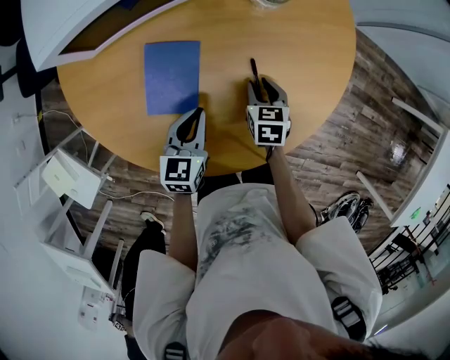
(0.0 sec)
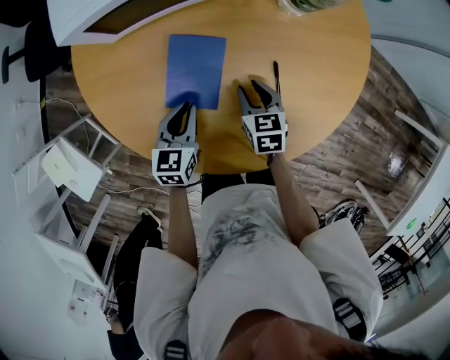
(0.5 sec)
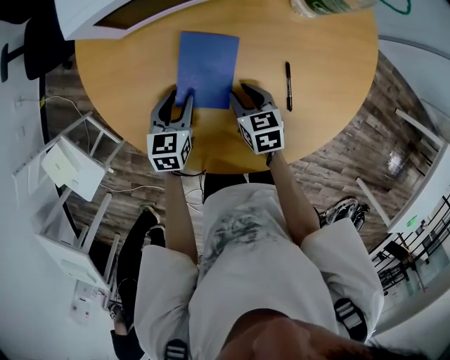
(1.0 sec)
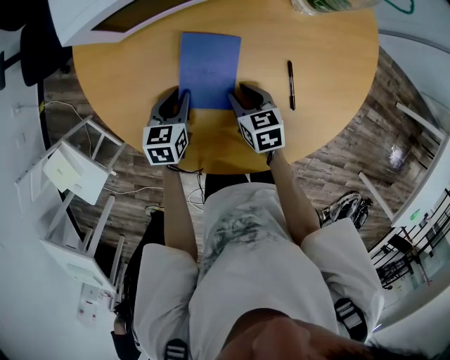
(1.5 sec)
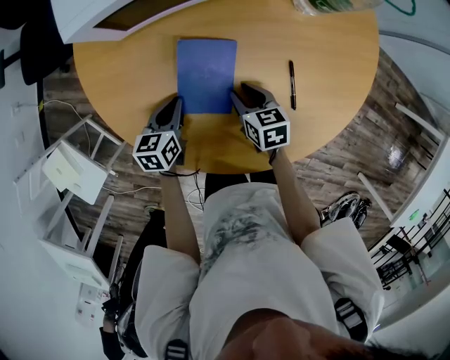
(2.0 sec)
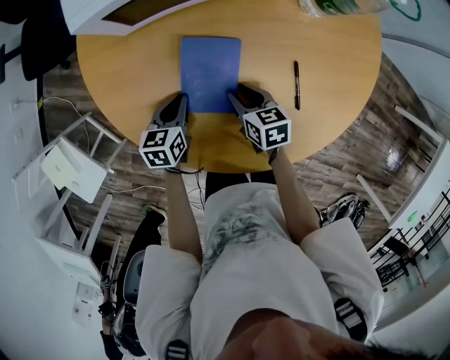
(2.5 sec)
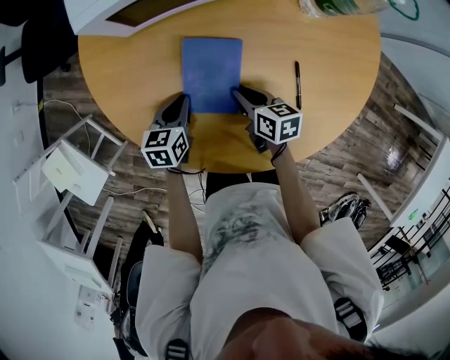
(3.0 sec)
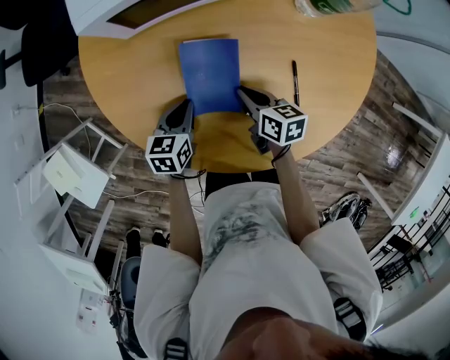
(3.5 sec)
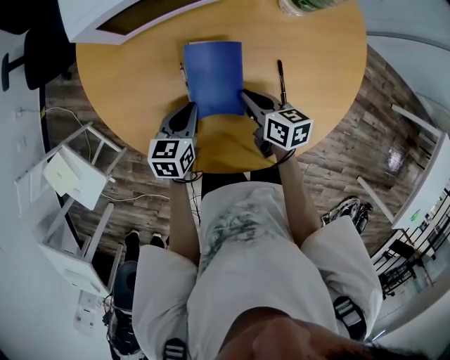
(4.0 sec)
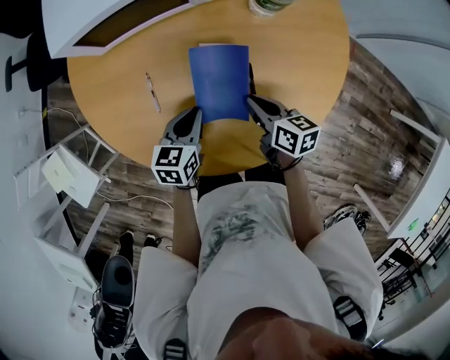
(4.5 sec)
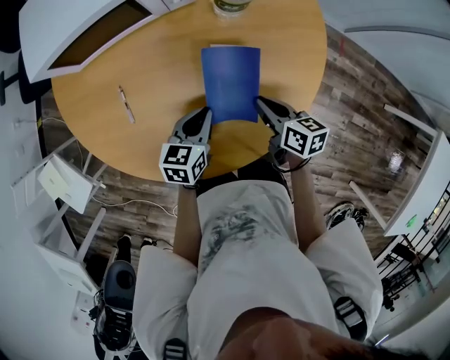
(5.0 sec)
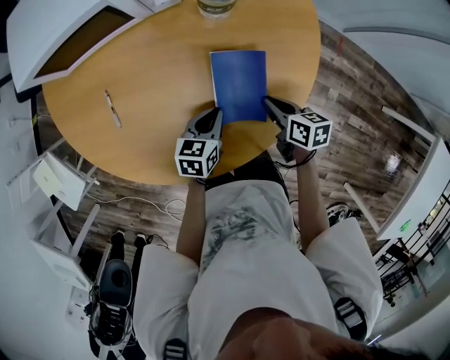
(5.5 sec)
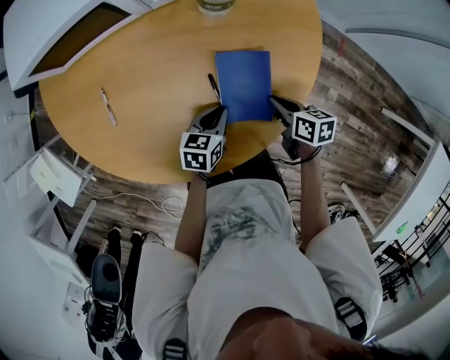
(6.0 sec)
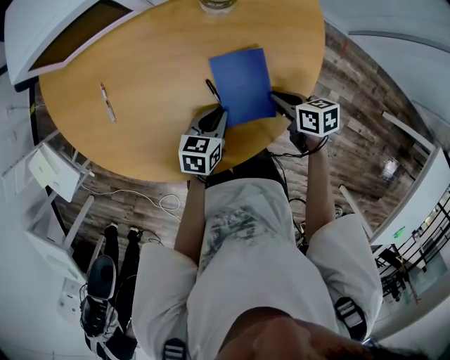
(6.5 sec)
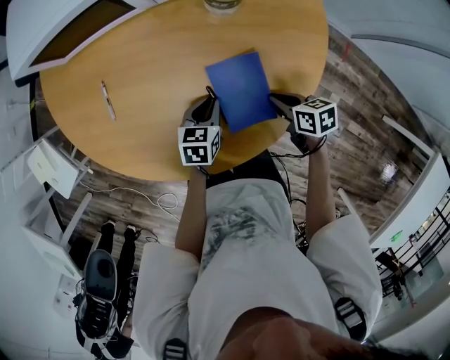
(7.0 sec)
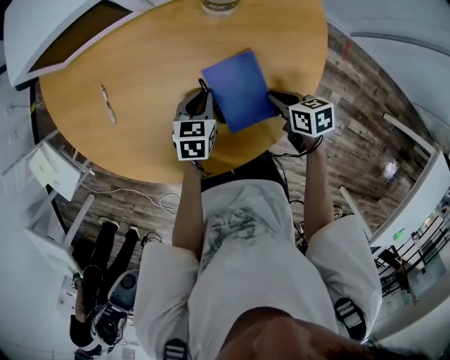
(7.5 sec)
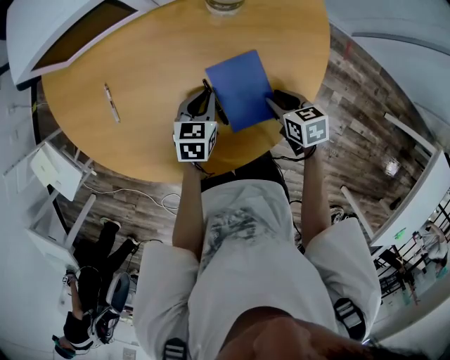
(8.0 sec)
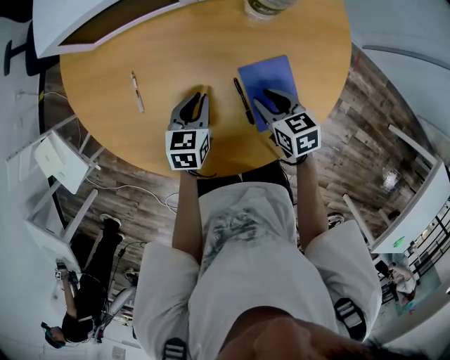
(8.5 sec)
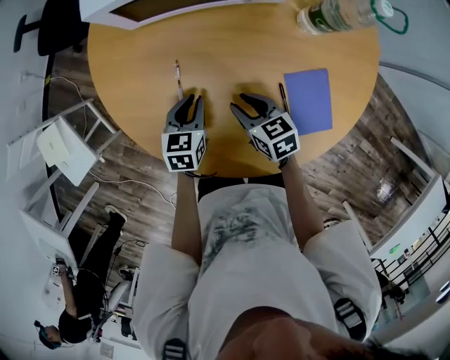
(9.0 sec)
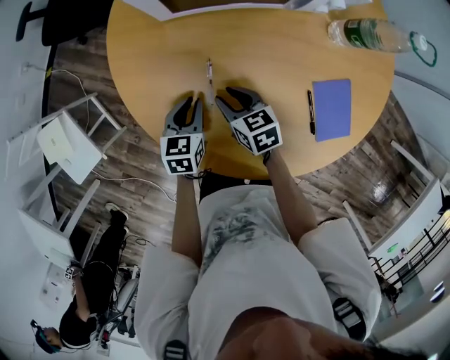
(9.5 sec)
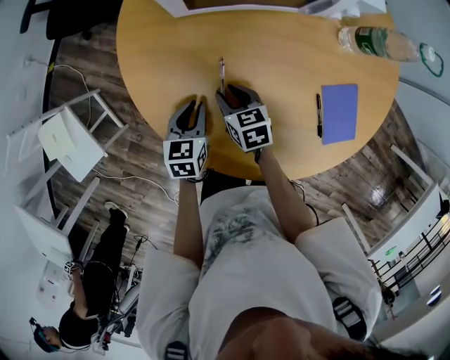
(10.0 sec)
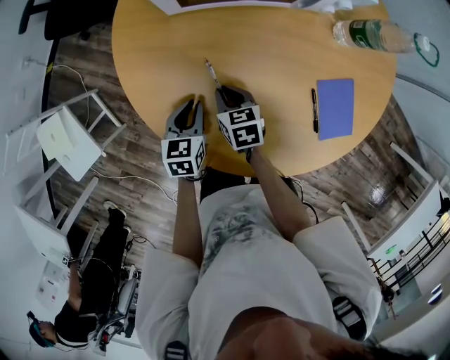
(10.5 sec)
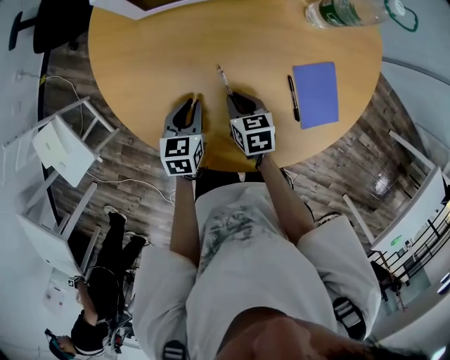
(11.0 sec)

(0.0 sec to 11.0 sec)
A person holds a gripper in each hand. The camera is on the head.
0.0 sec - 2.0 sec: The right gripper goes approximately 15 cm to the left, and changes its angle by roughly 20 degrees, while the left gripper travels to the left and downward by some 20 cm, and opens, then closes again.
2.0 sec - 3.5 sec: The right gripper closes.
3.5 sec - 5.5 sec: The two grippers go about 35 cm to the right.
5.5 sec - 7.5 sec: The left gripper goes roughly 5 cm forward.
7.5 sec - 9.0 sec: Both grippers move to the left, some 30 cm. The right gripper swivels some 20 degrees, and opens up.
9.0 sec - 11.0 sec: The right gripper goes to the left and returns, about 15 cm each way, and closes.

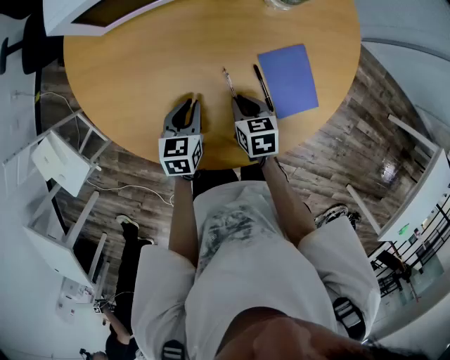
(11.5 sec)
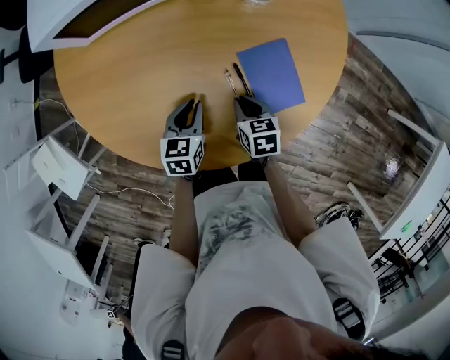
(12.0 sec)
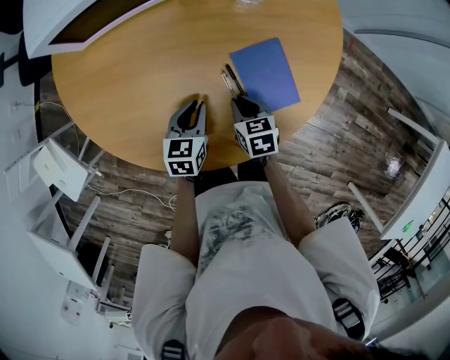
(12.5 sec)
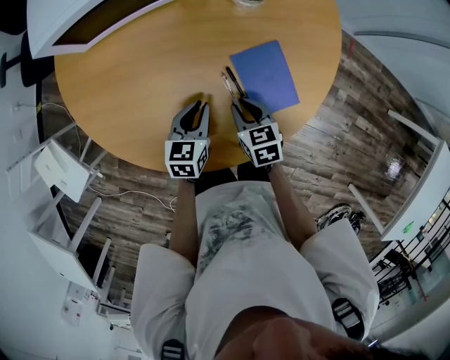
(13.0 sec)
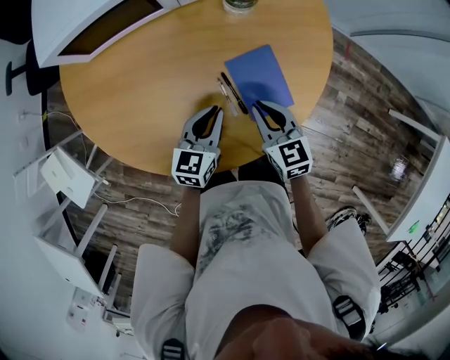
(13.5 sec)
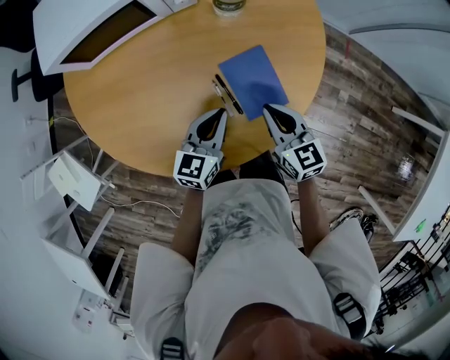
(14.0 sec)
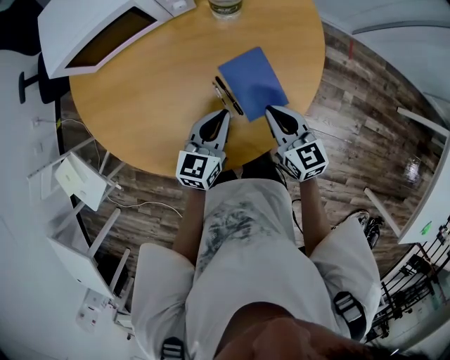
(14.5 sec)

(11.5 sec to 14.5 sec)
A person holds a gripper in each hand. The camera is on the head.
11.5 sec - 13.0 sec: Both grippers travel together to the right, roughly 10 cm.
13.0 sec - 14.5 sec: Both grippers move upward and to the right, approximately 15 cm. The right gripper swivels roughly 20 degrees.

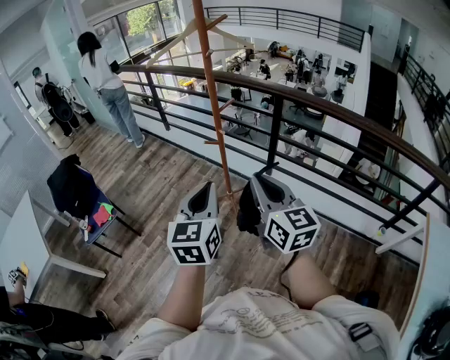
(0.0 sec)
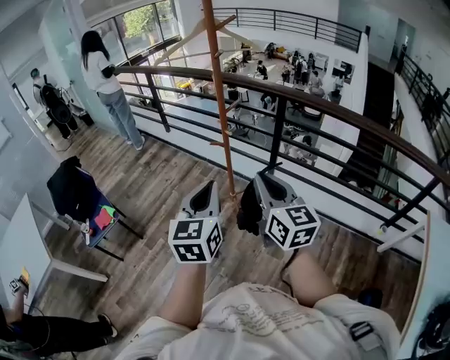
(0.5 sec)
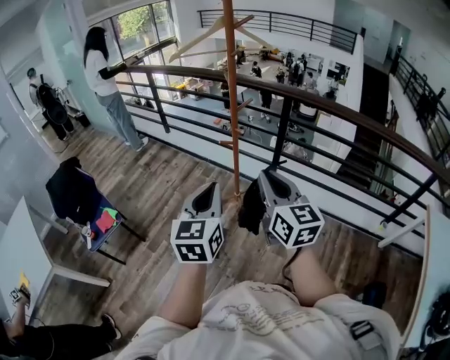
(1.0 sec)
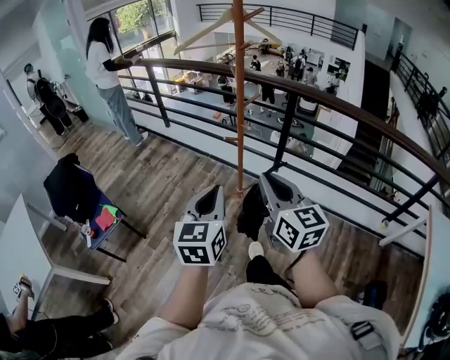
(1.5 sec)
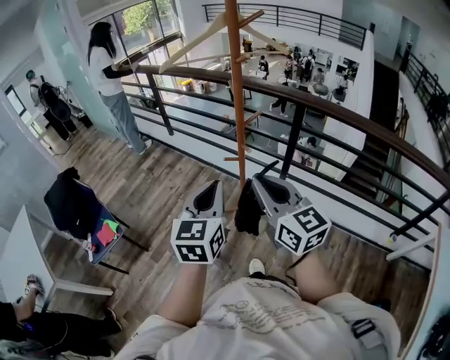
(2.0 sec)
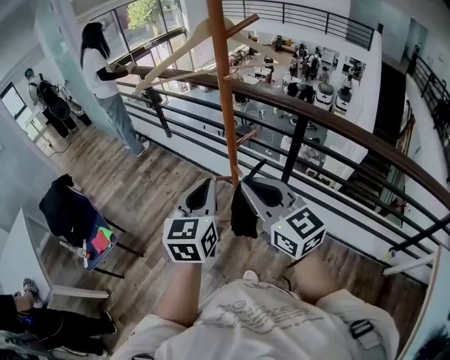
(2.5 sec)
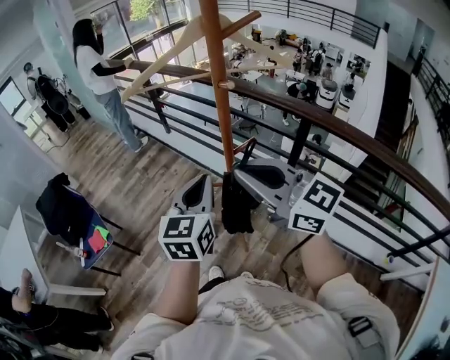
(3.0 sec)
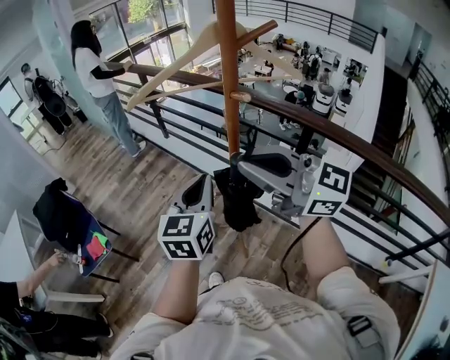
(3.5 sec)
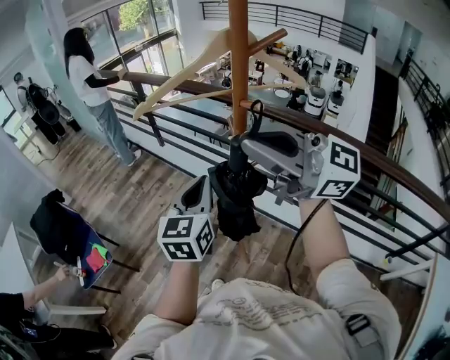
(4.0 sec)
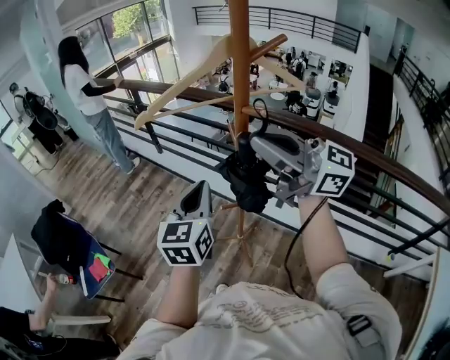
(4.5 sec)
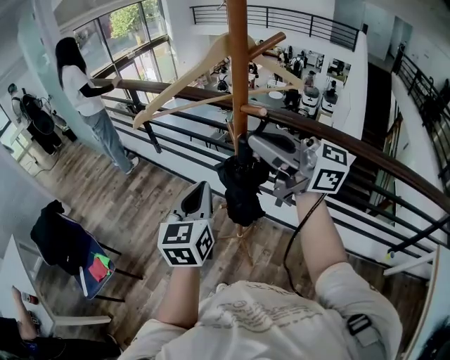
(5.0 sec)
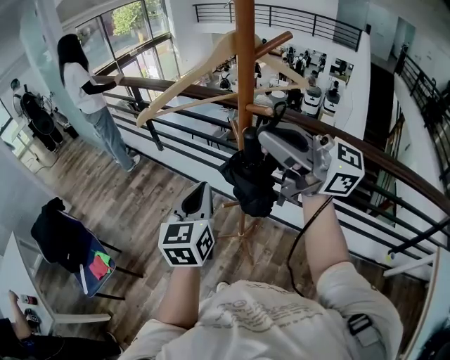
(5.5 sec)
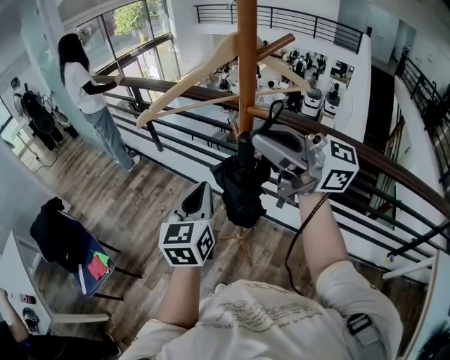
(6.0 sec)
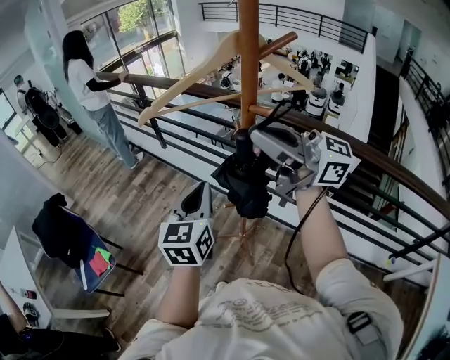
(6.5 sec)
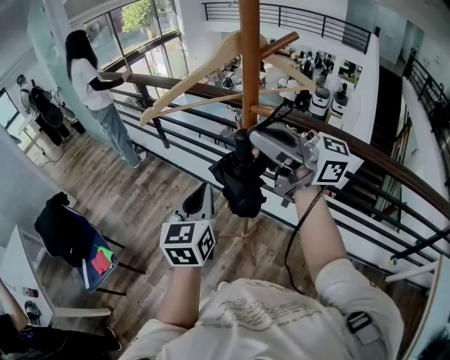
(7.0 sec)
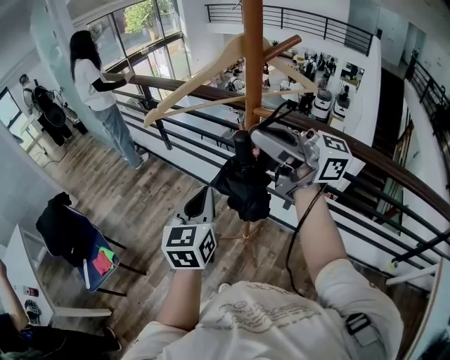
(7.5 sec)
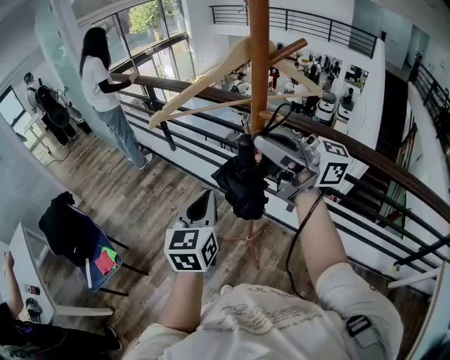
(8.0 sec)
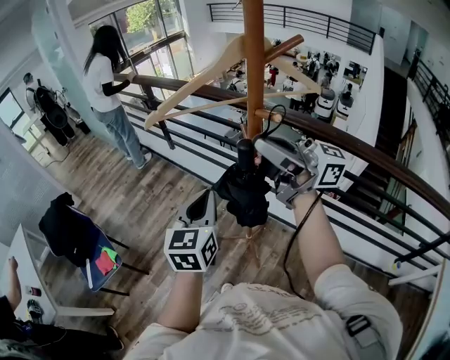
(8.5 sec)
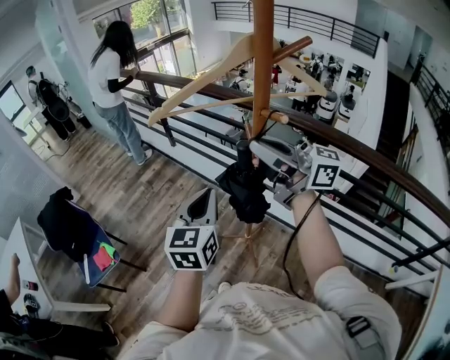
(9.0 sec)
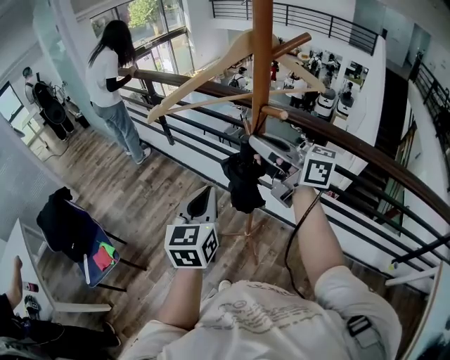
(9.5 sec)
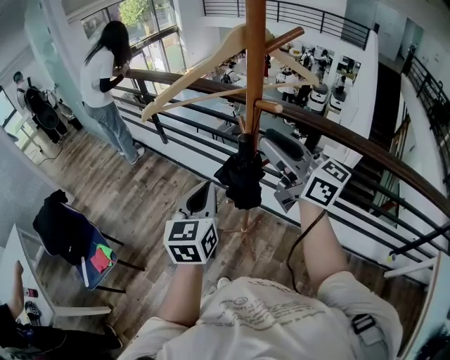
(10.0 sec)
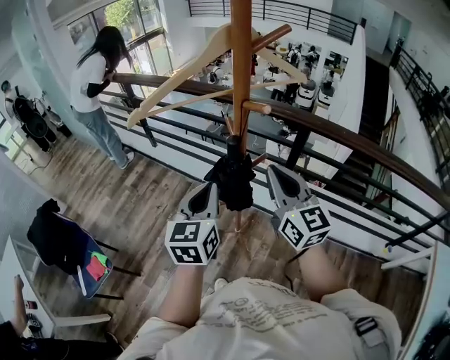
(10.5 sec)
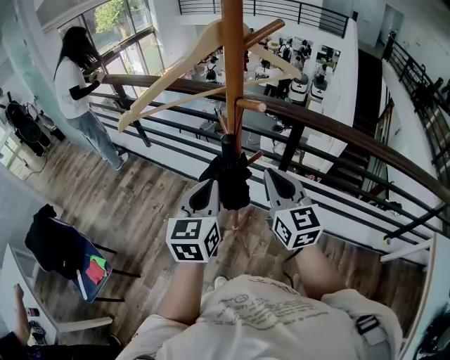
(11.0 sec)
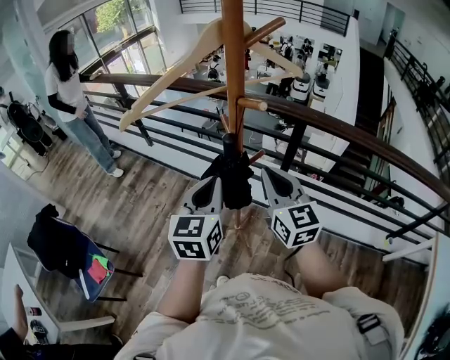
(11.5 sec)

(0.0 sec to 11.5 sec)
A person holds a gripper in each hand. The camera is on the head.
0.0 sec - 2.0 sec: The two grippers go some 20 cm forward and to the left.
2.0 sec - 4.0 sec: The right gripper is displaced forward and upward by about 25 cm, and rotates some 50 degrees, while the left gripper goes roughly 25 cm forward.
6.0 sec - 7.5 sec: There are only small adjustments of the grippers.
7.5 sec - 9.5 sec: The right gripper is displaced downward and forward by approximately 10 cm, and swivels approximately 20 degrees.
9.5 sec - 11.5 sec: The left gripper shifts by approximately 5 cm, while the right gripper heads downward, covering approximately 10 cm, swivels about 60 degrees, and opens and closes again.

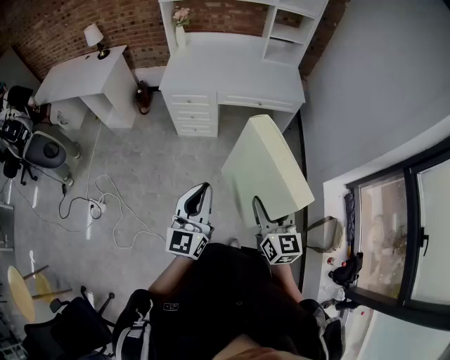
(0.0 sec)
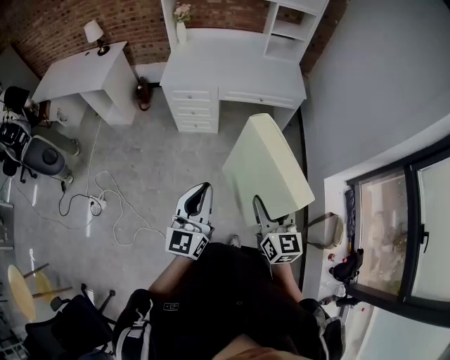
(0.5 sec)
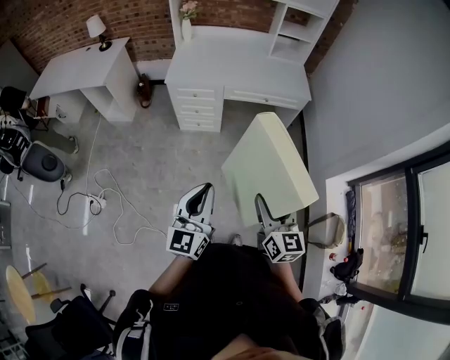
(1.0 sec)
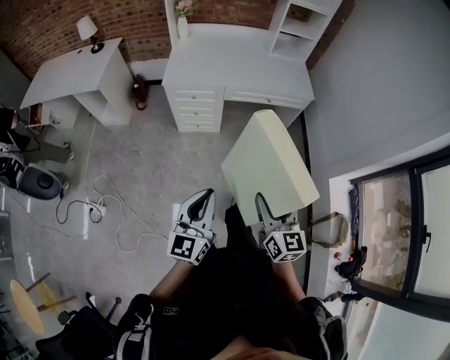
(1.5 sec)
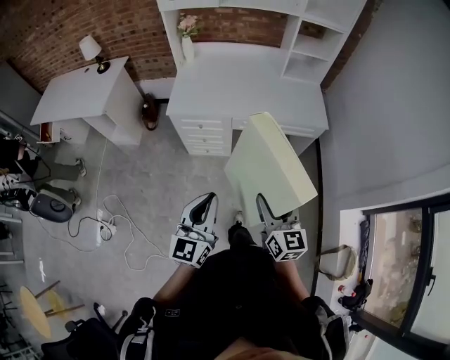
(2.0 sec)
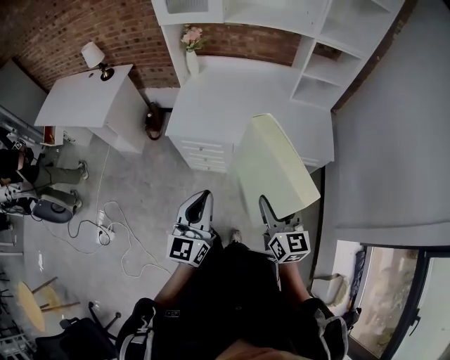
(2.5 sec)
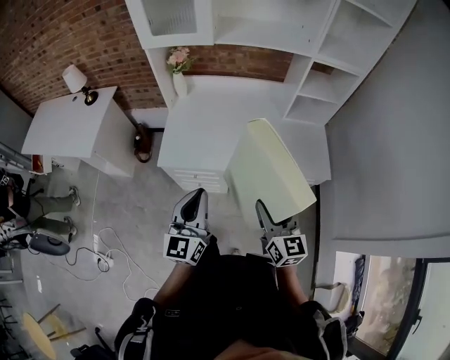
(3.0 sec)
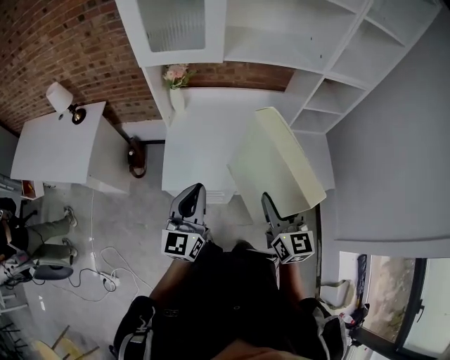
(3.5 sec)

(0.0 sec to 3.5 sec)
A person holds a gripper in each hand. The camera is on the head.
0.0 sec - 2.0 sec: The two grippers go roughly 25 cm forward.
2.0 sec - 3.5 sec: Both grippers are carried forward, approximately 40 cm.
